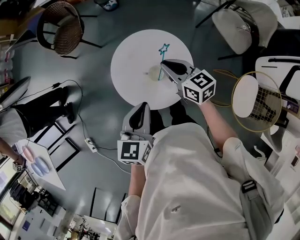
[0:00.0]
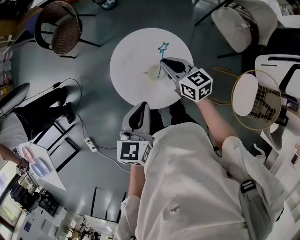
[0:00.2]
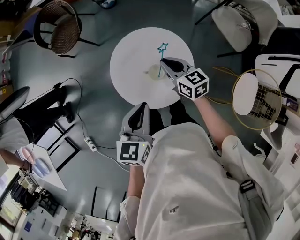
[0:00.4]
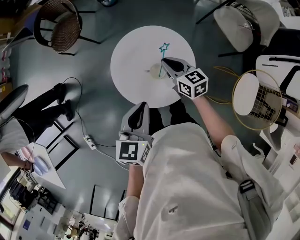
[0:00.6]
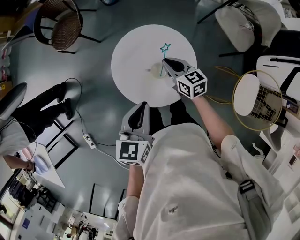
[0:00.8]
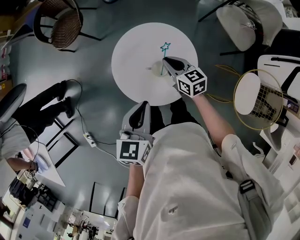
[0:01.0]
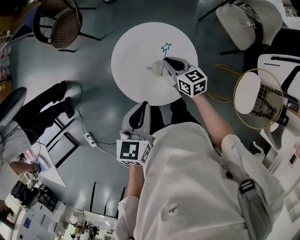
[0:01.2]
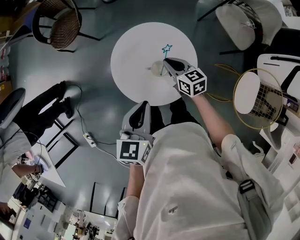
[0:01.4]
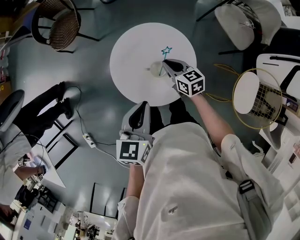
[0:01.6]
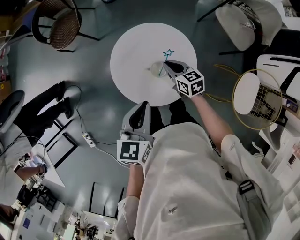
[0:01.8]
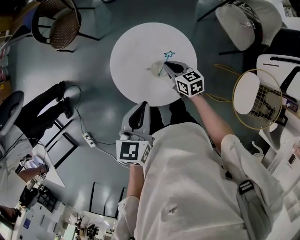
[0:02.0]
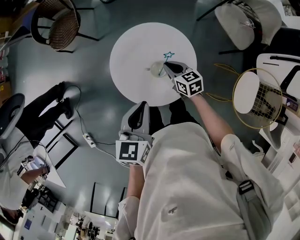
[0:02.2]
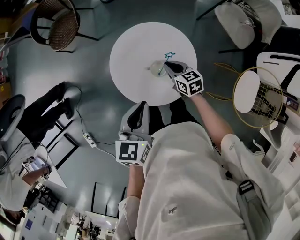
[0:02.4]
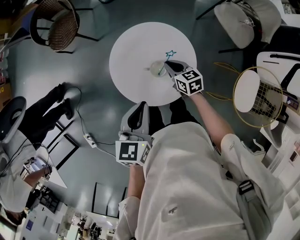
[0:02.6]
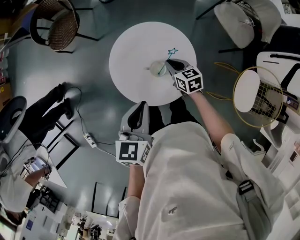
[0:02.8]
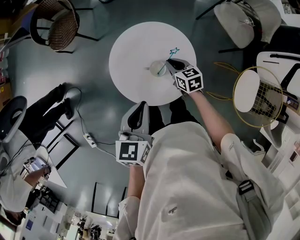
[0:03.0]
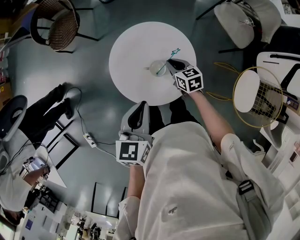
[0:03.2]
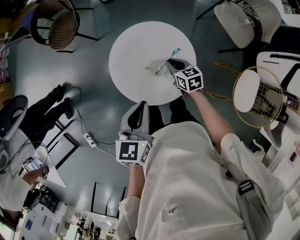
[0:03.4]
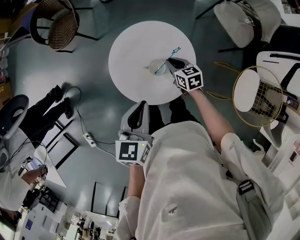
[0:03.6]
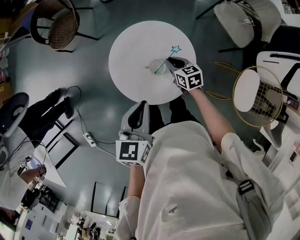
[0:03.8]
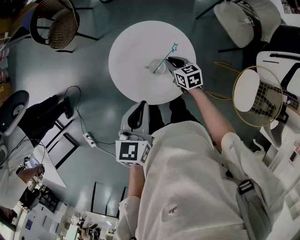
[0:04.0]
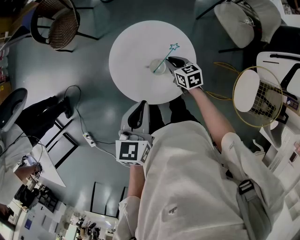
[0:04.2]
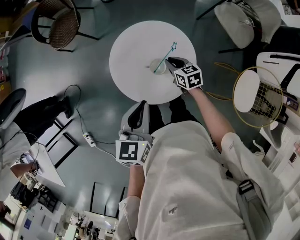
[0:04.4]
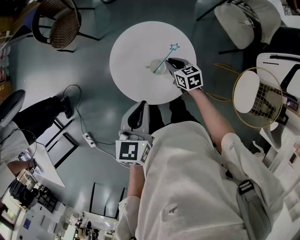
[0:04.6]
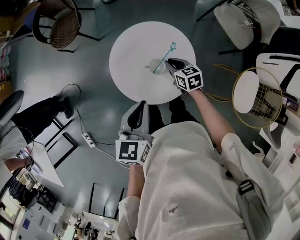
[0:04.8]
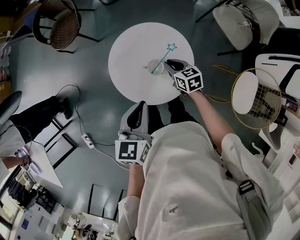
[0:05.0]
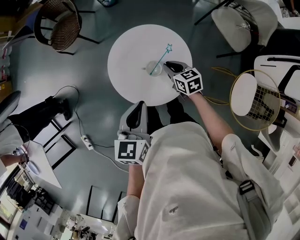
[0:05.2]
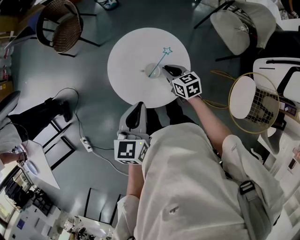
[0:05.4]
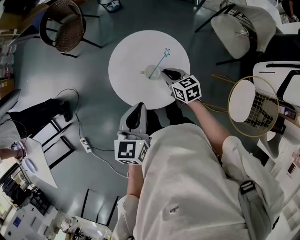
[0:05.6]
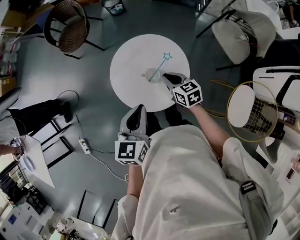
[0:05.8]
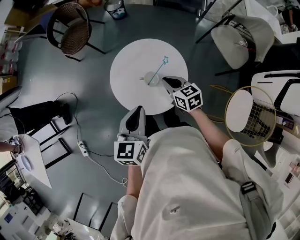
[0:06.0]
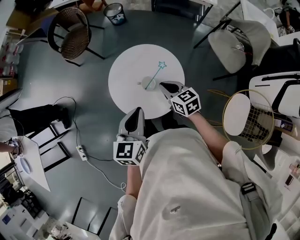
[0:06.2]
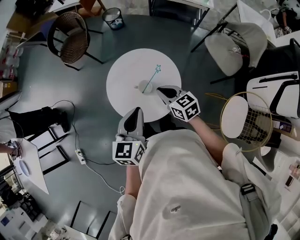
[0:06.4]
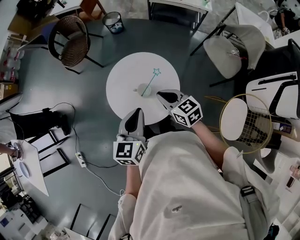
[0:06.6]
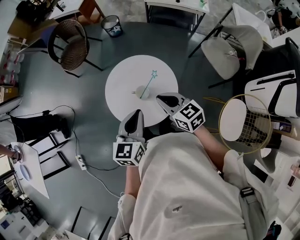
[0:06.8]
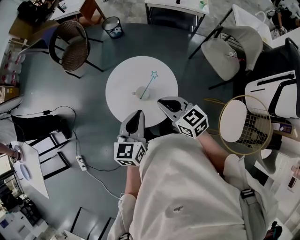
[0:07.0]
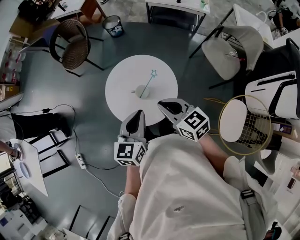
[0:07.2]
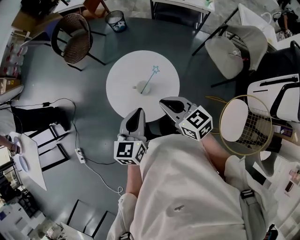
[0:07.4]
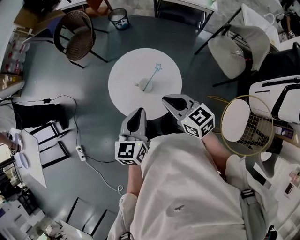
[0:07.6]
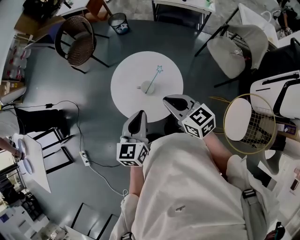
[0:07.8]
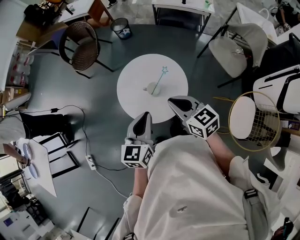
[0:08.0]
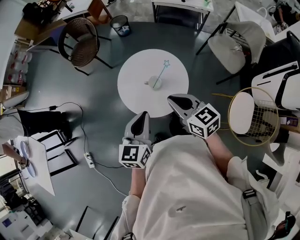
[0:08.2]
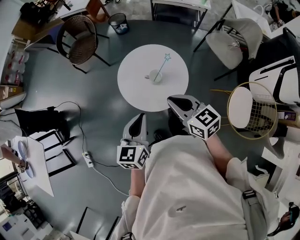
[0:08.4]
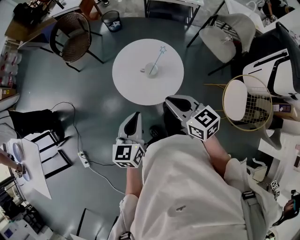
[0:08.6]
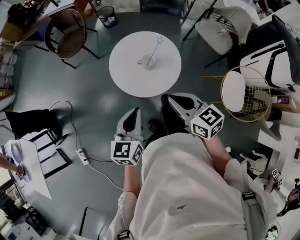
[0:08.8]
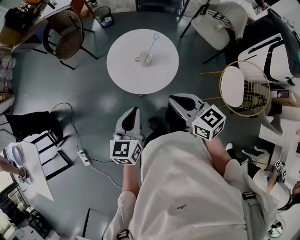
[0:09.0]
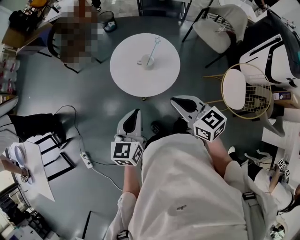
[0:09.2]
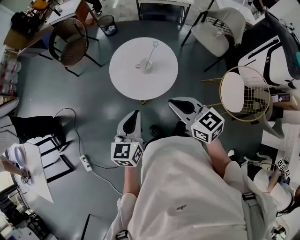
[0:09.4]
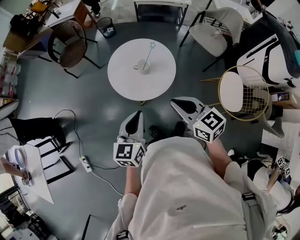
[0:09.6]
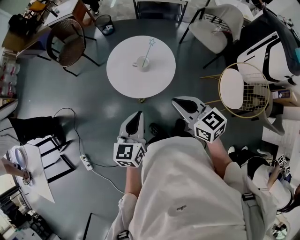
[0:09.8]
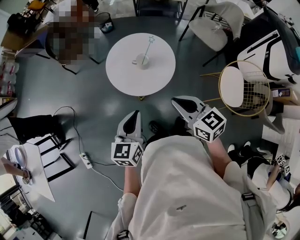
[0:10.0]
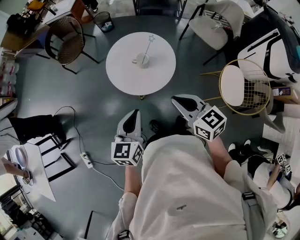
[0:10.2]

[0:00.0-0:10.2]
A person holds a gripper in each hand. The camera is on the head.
0:00.0 to 0:01.4: The right gripper travels downward by approximately 10 cm.
0:01.4 to 0:03.0: The right gripper is displaced downward by roughly 5 cm.
0:03.0 to 0:04.4: The two grippers keep their place.
0:04.4 to 0:05.8: The right gripper shifts approximately 10 cm upward.
0:05.8 to 0:07.2: The left gripper is displaced to the right by roughly 5 cm, while the right gripper shifts about 20 cm upward and backward.
0:07.2 to 0:08.8: The left gripper travels to the left and backward by approximately 20 cm. The right gripper is displaced backward and to the left by about 15 cm.
0:08.8 to 0:10.2: The right gripper travels backward by about 5 cm; the left gripper moves some 5 cm.

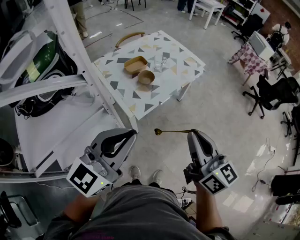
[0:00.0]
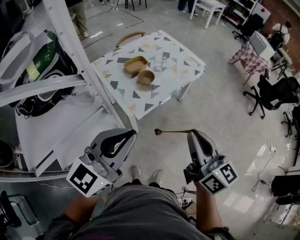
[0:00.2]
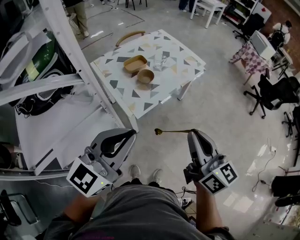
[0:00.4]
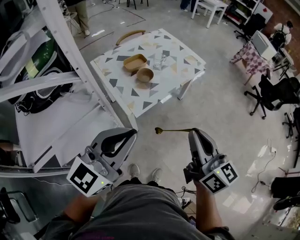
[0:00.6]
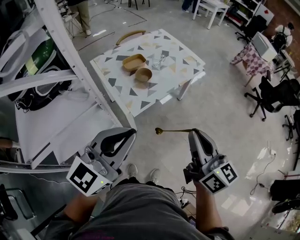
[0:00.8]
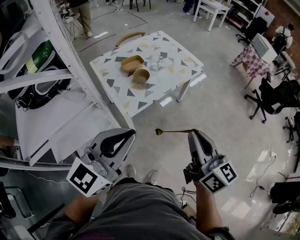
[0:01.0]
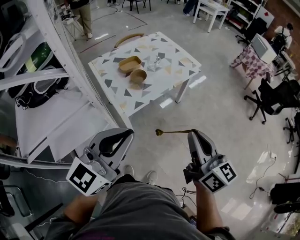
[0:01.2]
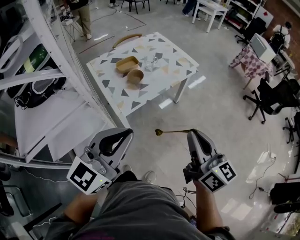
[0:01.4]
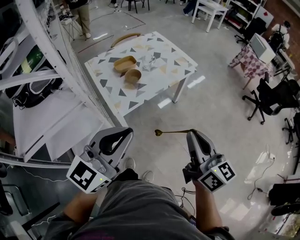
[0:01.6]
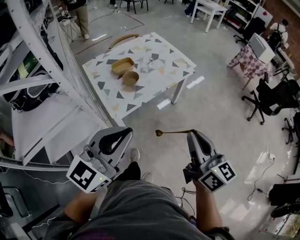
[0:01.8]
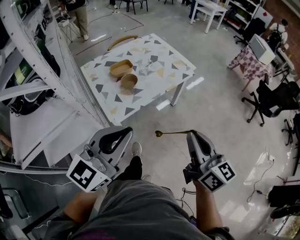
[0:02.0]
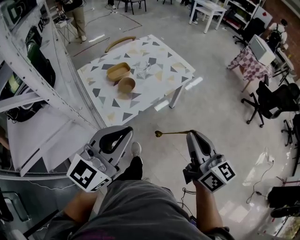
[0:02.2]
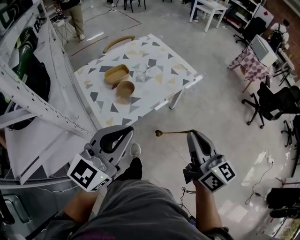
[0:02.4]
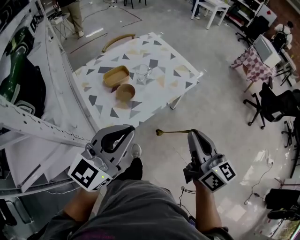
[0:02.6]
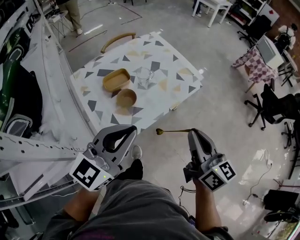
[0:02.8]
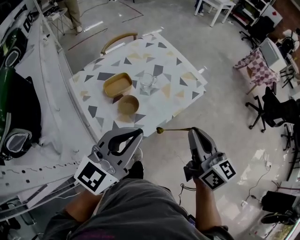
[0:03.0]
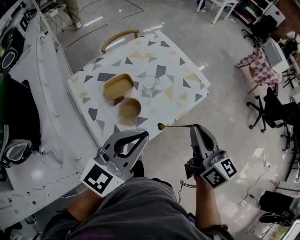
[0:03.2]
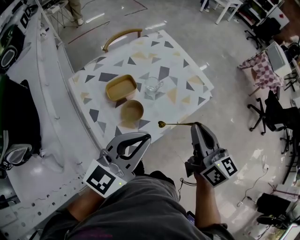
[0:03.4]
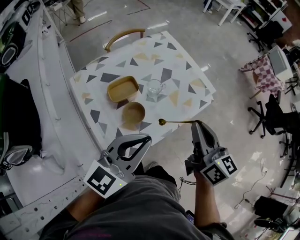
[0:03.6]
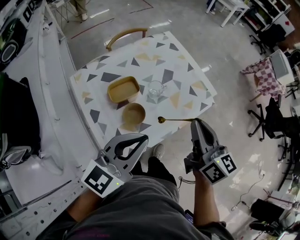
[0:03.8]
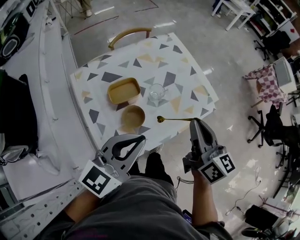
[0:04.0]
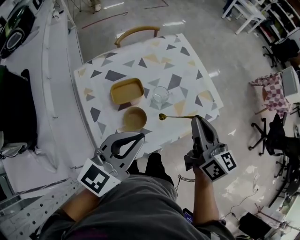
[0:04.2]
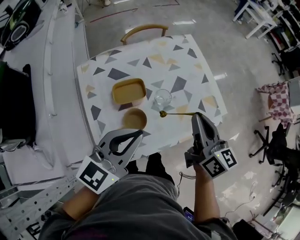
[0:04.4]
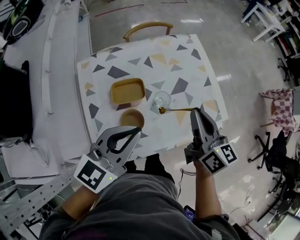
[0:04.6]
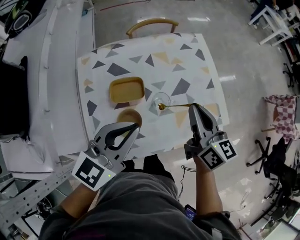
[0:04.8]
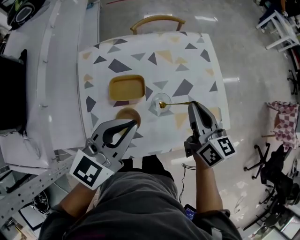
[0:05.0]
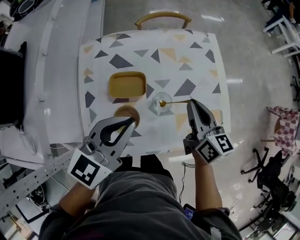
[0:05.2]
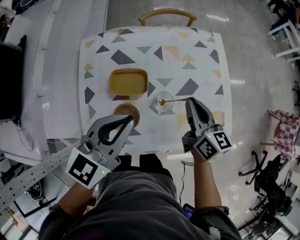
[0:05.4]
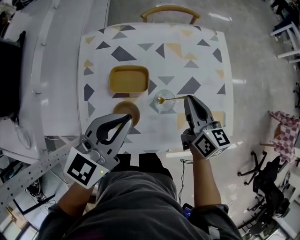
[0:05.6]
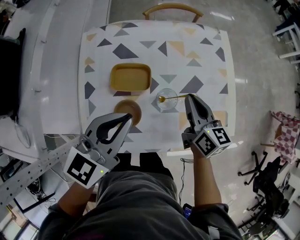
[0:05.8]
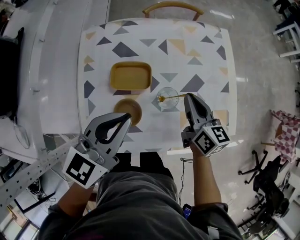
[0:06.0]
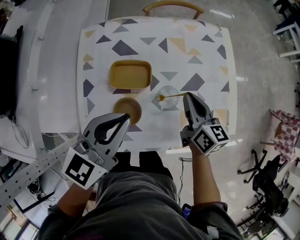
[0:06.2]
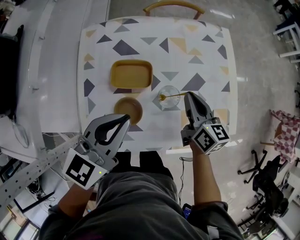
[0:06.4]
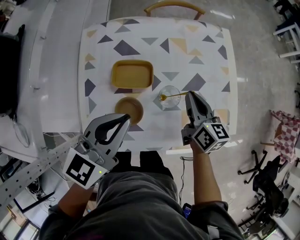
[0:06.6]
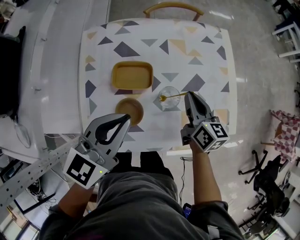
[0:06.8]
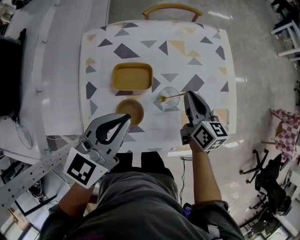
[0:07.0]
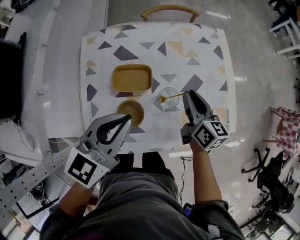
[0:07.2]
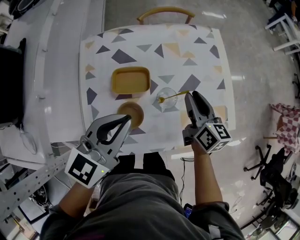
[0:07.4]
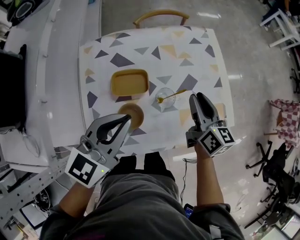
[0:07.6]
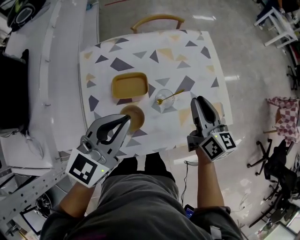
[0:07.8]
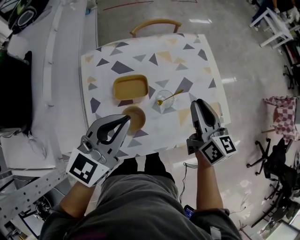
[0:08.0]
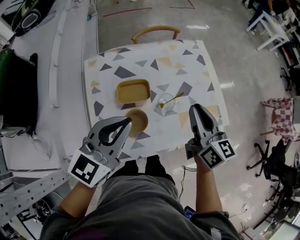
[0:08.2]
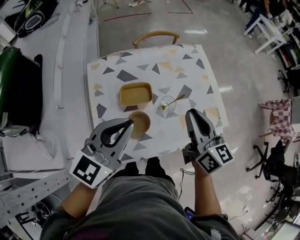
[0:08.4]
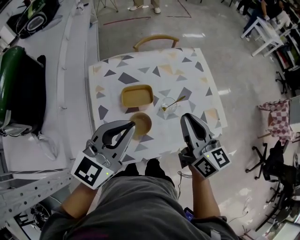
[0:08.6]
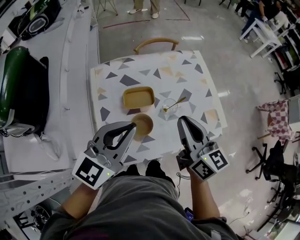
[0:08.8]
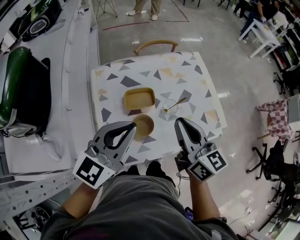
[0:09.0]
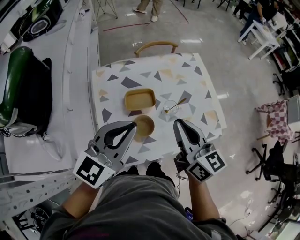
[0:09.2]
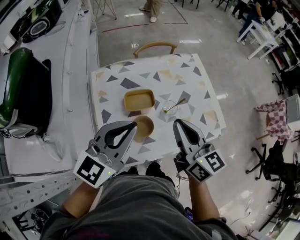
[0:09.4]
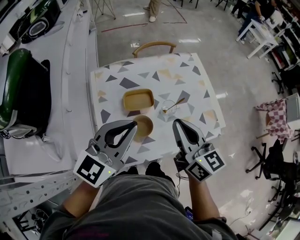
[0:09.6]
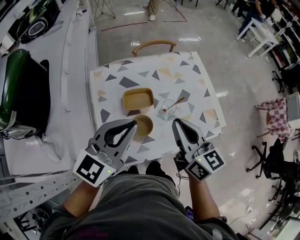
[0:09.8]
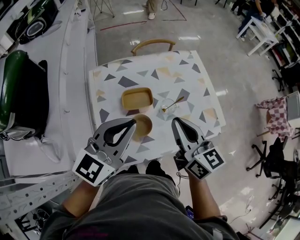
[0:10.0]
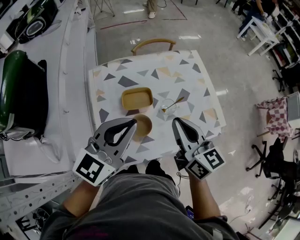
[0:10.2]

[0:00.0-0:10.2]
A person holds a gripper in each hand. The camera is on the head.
0:00.0 to 0:01.4: Both grippers travel together to the right, roughly 10 cm.
0:01.4 to 0:03.0: The two grippers go roughly 30 cm forward.
0:03.0 to 0:04.4: The right gripper goes about 25 cm forward; the left gripper heads forward, covering roughly 15 cm, and swivels approximately 20 degrees.
0:04.4 to 0:05.8: The right gripper goes some 20 cm downward and forward, and rotates some 20 degrees. The left gripper moves forward and downward, approximately 10 cm, and changes its angle by approximately 20 degrees.
0:05.8 to 0:07.2: The grippers stay close to where they were, moving slightly.
0:07.2 to 0:08.8: The left gripper moves upward and backward, approximately 10 cm, while the right gripper heads upward and backward, covering approximately 25 cm.
0:08.8 to 0:10.2: The grippers stay close to where they were, moving slightly.

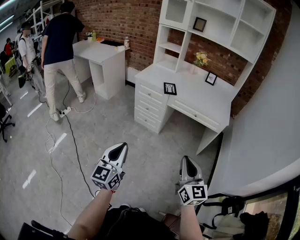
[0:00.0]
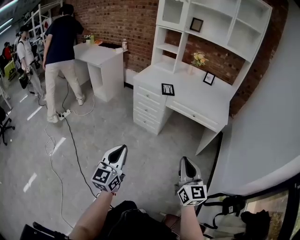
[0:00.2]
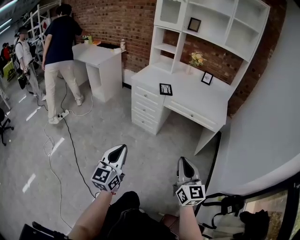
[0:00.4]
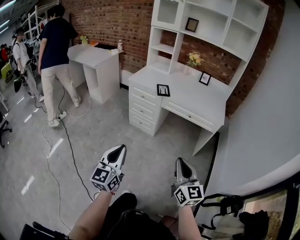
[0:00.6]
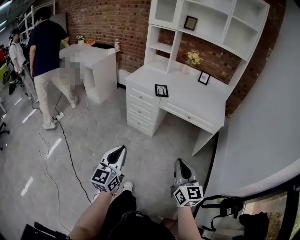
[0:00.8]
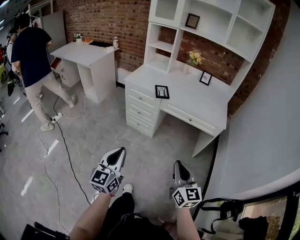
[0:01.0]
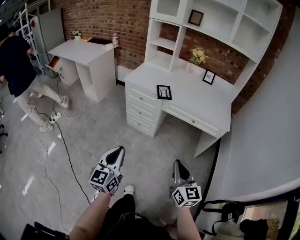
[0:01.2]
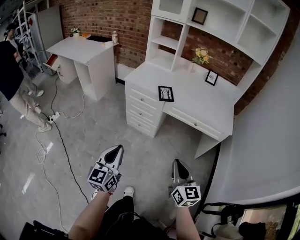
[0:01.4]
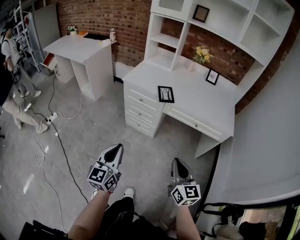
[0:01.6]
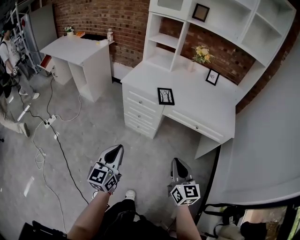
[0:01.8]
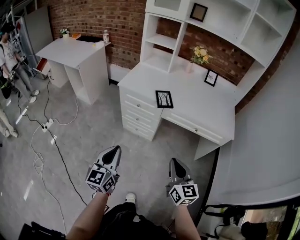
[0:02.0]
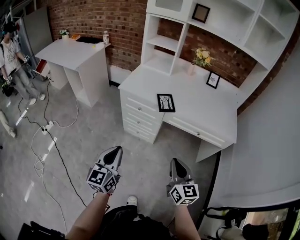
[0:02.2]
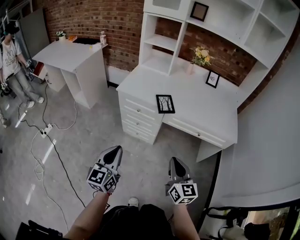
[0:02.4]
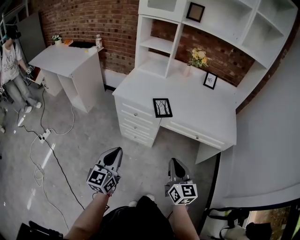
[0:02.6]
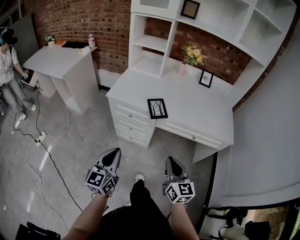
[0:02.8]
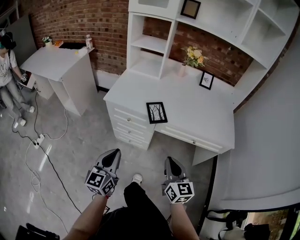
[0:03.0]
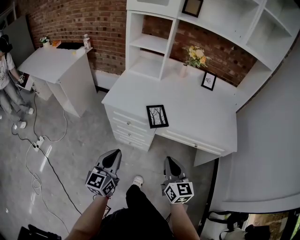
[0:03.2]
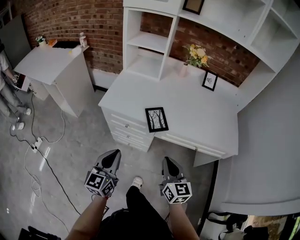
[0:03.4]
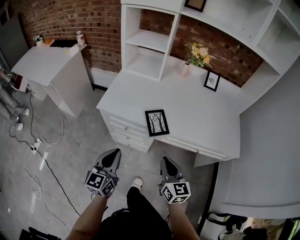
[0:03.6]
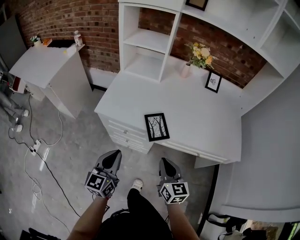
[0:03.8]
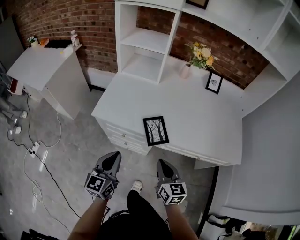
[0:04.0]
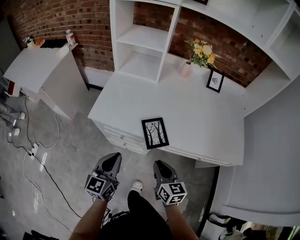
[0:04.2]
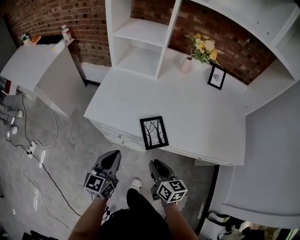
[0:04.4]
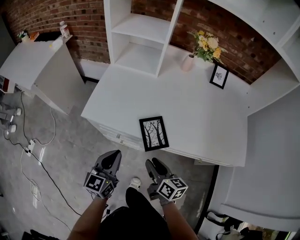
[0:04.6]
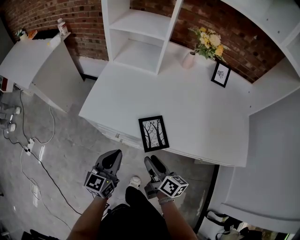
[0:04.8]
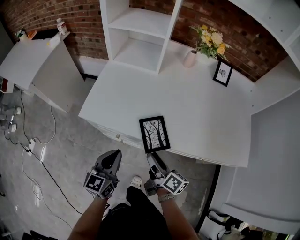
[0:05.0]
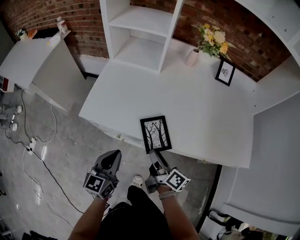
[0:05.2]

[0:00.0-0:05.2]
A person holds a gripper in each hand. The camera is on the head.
0:00.0 to 0:01.8: The grippers both shift forward by roughly 25 cm.
0:01.8 to 0:03.4: The two grippers go roughly 25 cm forward.
0:03.4 to 0:05.2: The two grippers go some 20 cm forward and downward. The right gripper rolls clockwise, seen from behind, by about 60 degrees, and opens.
